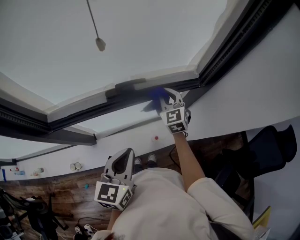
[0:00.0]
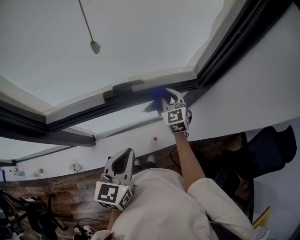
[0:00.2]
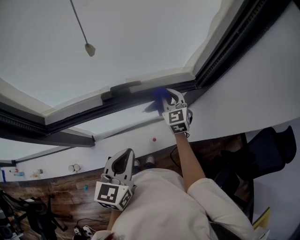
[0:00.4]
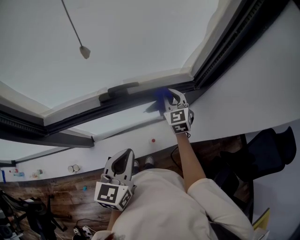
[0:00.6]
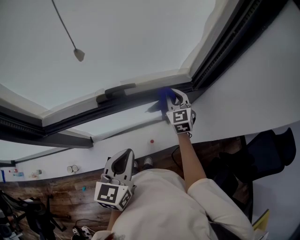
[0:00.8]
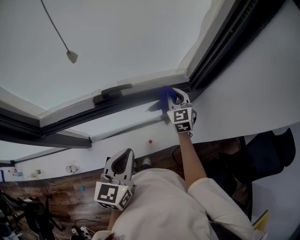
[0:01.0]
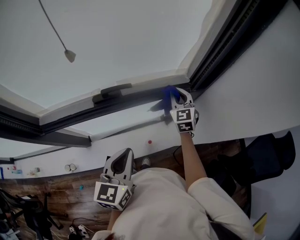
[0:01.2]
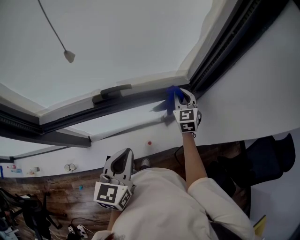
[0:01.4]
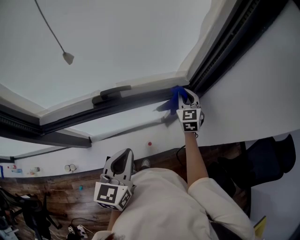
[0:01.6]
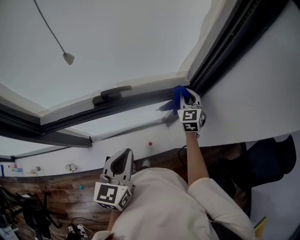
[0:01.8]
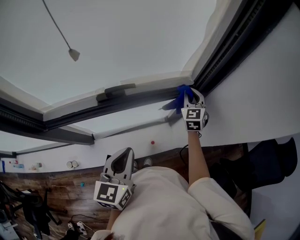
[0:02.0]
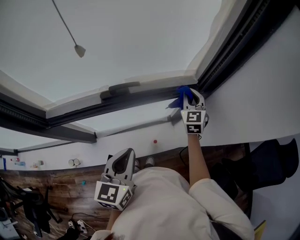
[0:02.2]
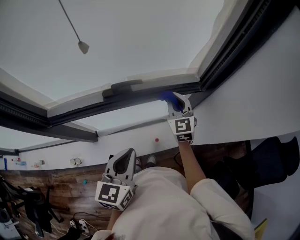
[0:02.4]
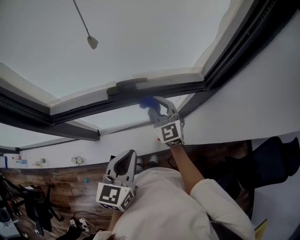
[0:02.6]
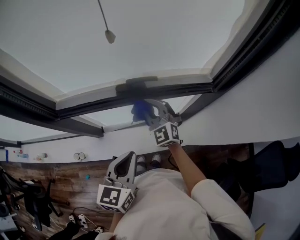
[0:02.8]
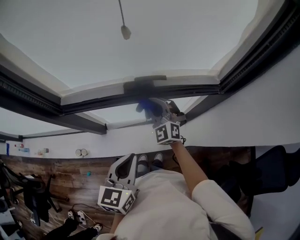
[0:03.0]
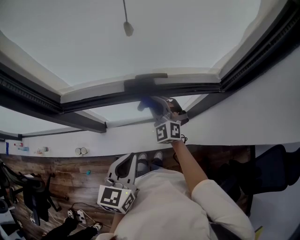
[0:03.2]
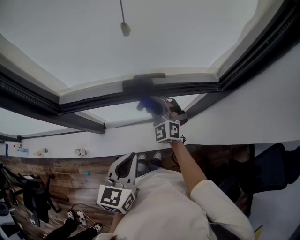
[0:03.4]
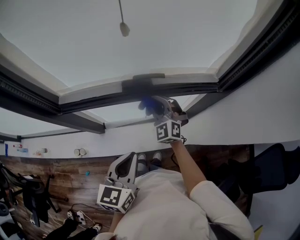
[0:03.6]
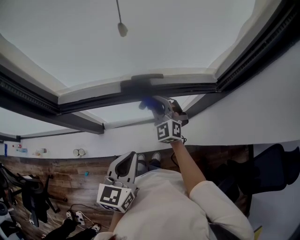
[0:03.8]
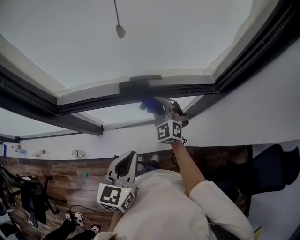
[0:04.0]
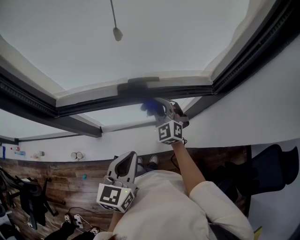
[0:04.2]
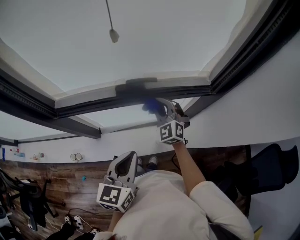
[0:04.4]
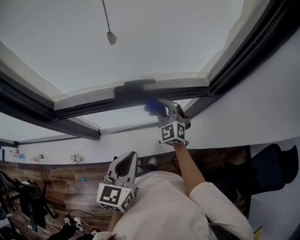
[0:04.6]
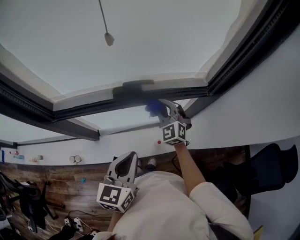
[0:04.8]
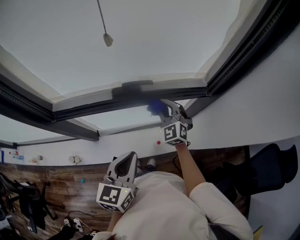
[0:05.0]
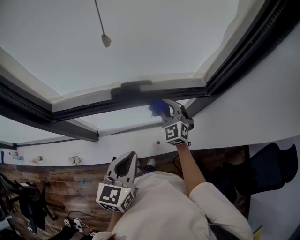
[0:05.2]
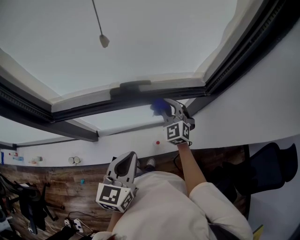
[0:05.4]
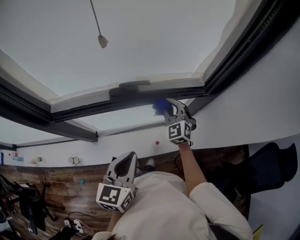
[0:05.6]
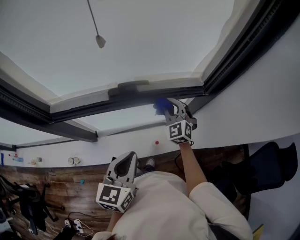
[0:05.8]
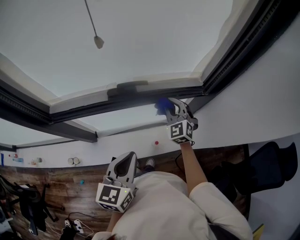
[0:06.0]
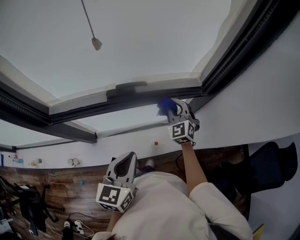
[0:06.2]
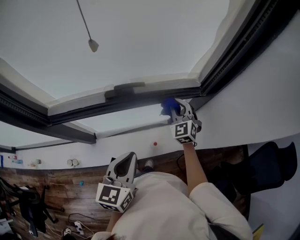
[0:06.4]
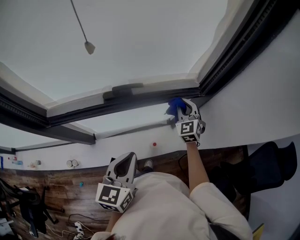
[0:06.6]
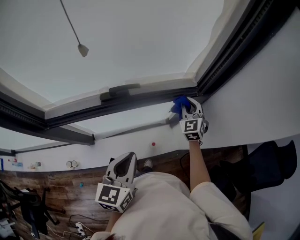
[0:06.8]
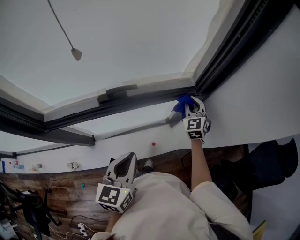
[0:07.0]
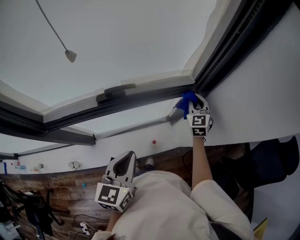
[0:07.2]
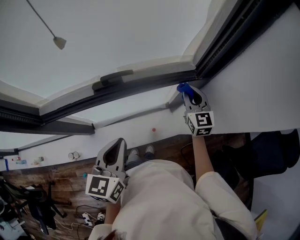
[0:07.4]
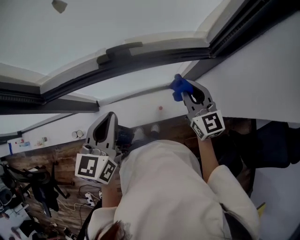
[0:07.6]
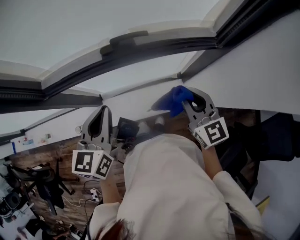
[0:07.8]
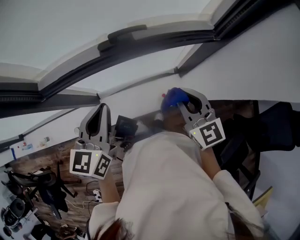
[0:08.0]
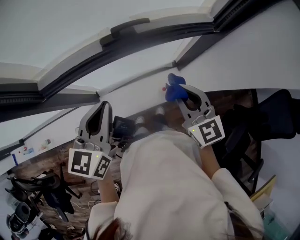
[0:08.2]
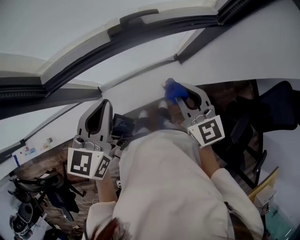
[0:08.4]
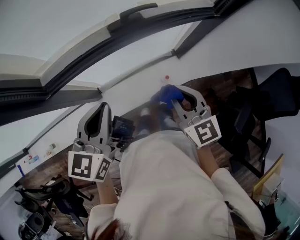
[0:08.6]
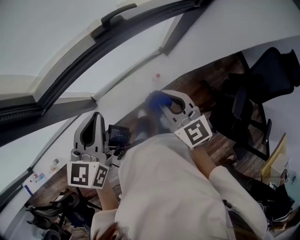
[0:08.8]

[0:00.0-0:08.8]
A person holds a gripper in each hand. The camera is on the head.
0:00.0 to 0:01.4: The left gripper moves to the right, about 5 cm, while the right gripper heads to the right, covering about 15 cm.
0:01.4 to 0:03.0: The right gripper is displaced to the left and backward by approximately 30 cm, and swivels about 40 degrees, while the left gripper shifts approximately 10 cm to the left and backward.
0:03.0 to 0:04.4: The right gripper heads to the right, covering approximately 5 cm.
0:04.4 to 0:05.8: The right gripper moves to the right, approximately 10 cm.
0:05.8 to 0:07.4: The right gripper shifts roughly 15 cm to the right, and turns by roughly 30 degrees.
0:07.4 to 0:08.8: The right gripper shifts approximately 35 cm to the left and backward. Meanwhile the left gripper heads to the left, covering some 20 cm.

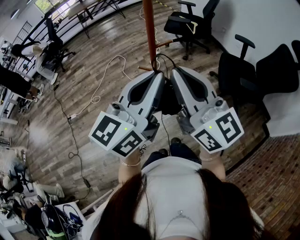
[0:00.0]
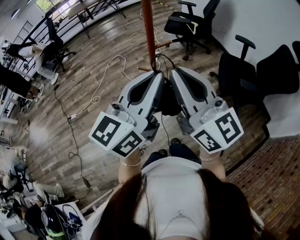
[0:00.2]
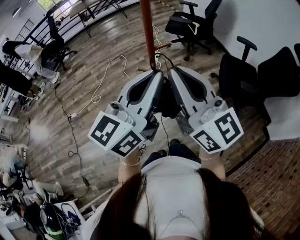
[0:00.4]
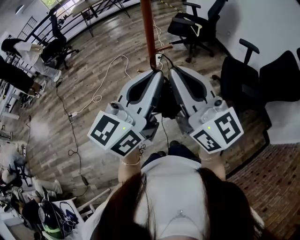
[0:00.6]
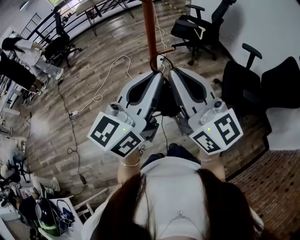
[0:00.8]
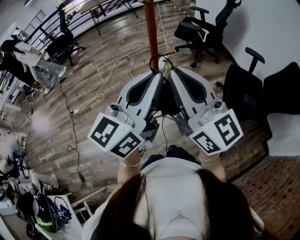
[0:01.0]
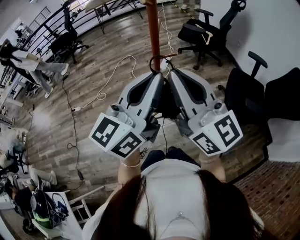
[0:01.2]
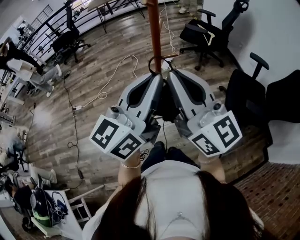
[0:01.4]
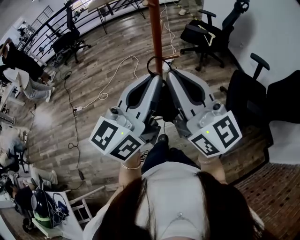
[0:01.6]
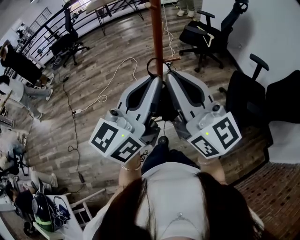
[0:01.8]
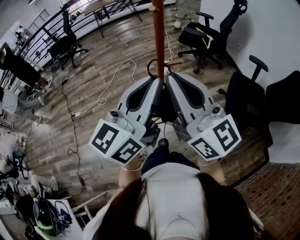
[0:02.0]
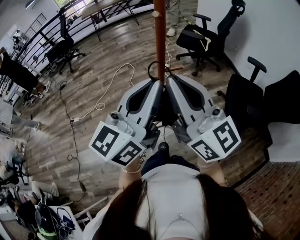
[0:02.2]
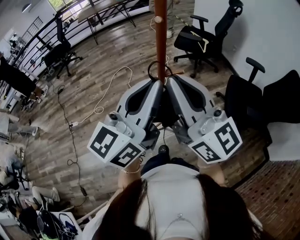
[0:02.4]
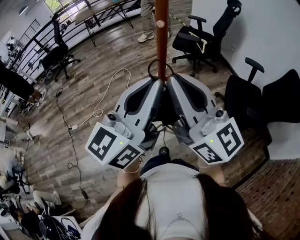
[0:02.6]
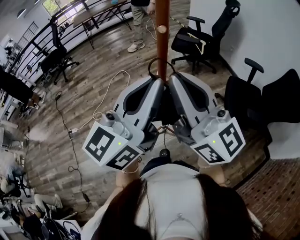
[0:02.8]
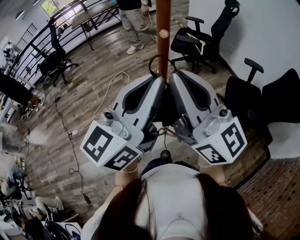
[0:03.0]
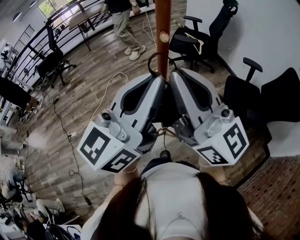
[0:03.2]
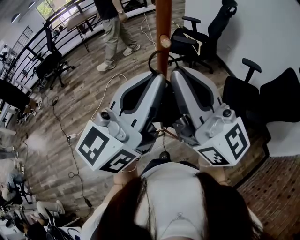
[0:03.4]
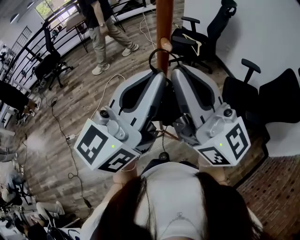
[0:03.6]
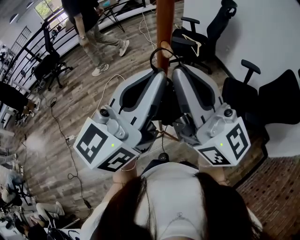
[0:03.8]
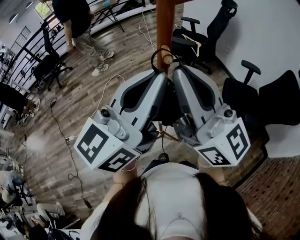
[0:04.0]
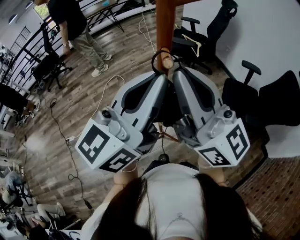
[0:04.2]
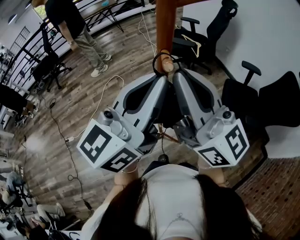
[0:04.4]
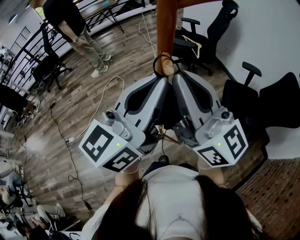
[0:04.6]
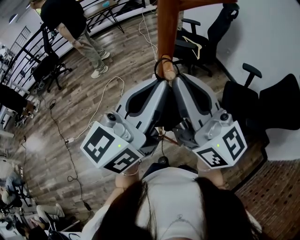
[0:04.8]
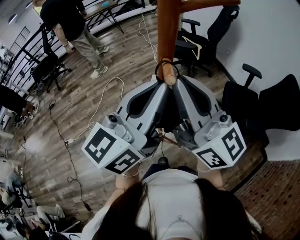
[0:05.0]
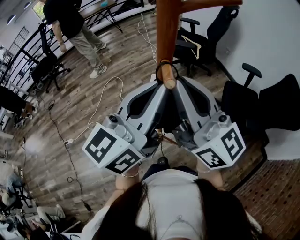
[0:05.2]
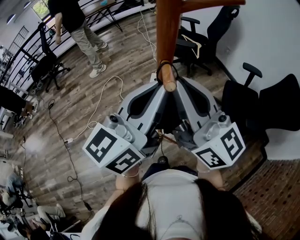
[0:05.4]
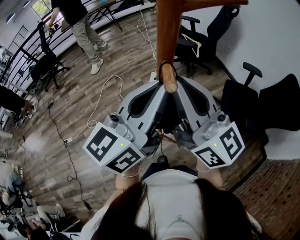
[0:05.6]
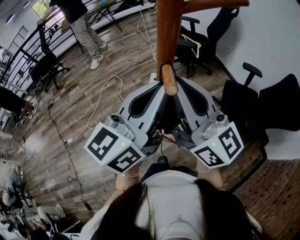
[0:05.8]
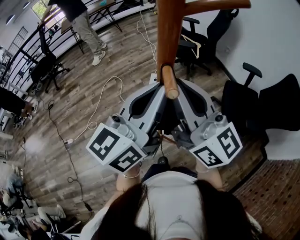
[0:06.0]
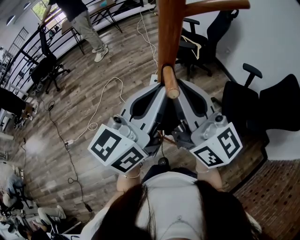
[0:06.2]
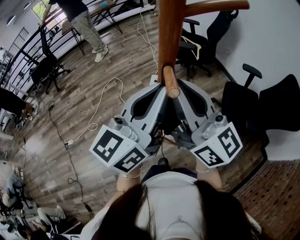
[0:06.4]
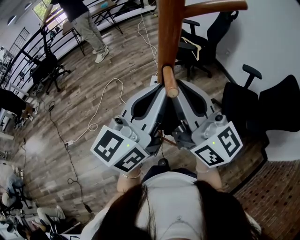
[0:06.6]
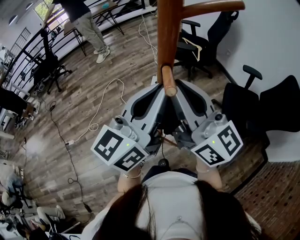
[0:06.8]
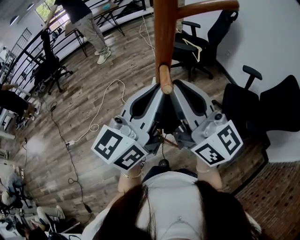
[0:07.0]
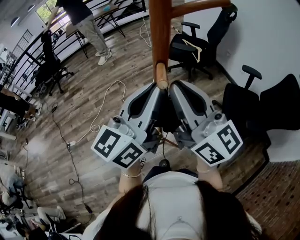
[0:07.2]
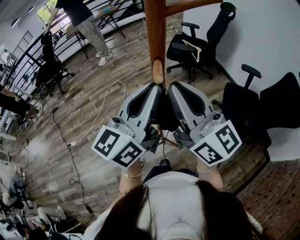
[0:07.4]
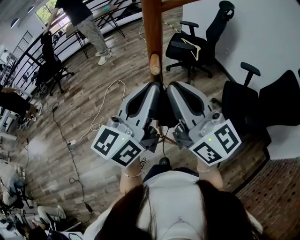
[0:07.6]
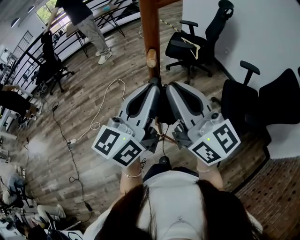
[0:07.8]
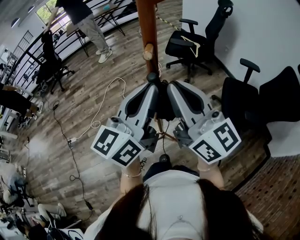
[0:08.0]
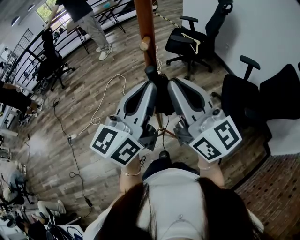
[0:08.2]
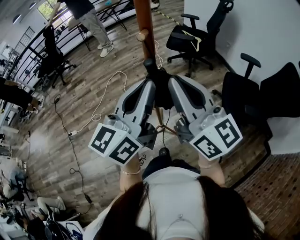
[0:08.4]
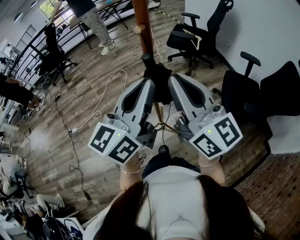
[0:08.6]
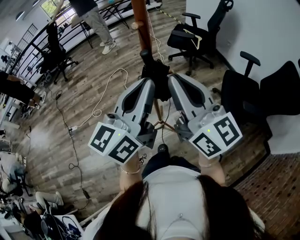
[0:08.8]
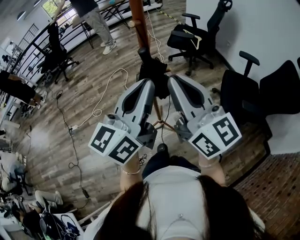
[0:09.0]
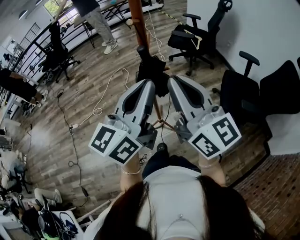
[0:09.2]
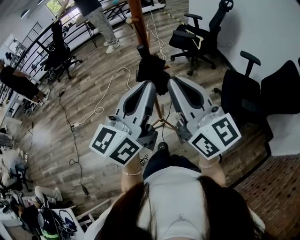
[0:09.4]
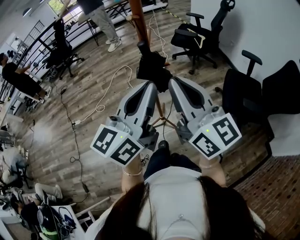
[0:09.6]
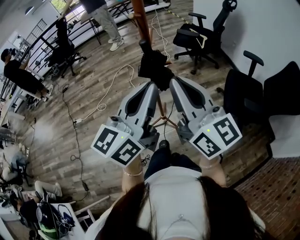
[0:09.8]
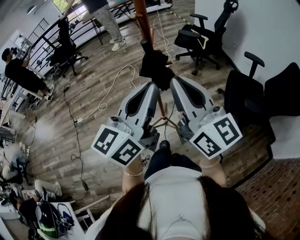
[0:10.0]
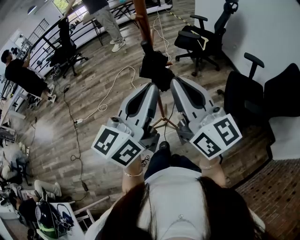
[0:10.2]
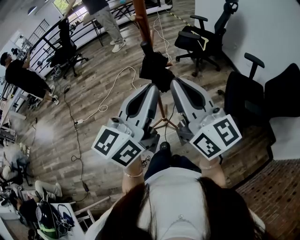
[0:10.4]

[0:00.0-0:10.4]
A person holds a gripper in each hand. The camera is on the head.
0:00.0 to 0:01.4: The right gripper moves forward, some 5 cm. The left gripper shifts by approximately 5 cm.
0:01.4 to 0:03.0: The two grippers go some 10 cm forward.
0:03.0 to 0:04.4: Both grippers move forward, some 5 cm.
0:04.4 to 0:06.0: Both grippers move forward, about 5 cm.
0:06.0 to 0:07.4: The grippers stay close to where they were, moving slightly.
0:07.4 to 0:09.0: The grippers both shift backward by roughly 15 cm.
0:09.0 to 0:10.4: The left gripper shifts roughly 5 cm backward.

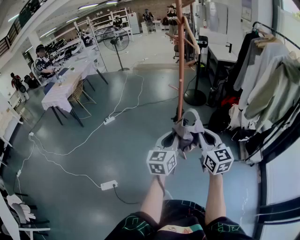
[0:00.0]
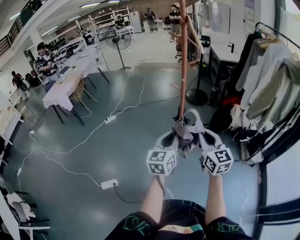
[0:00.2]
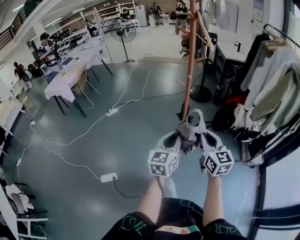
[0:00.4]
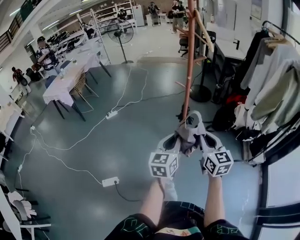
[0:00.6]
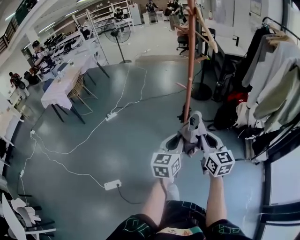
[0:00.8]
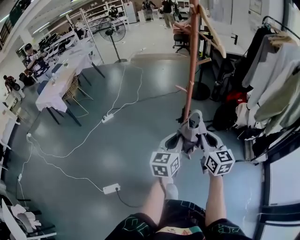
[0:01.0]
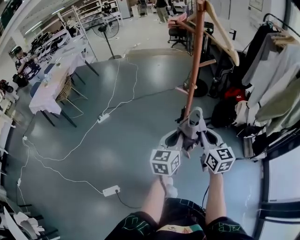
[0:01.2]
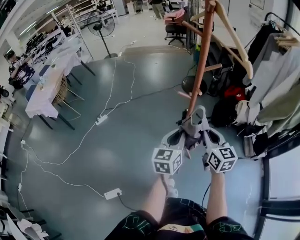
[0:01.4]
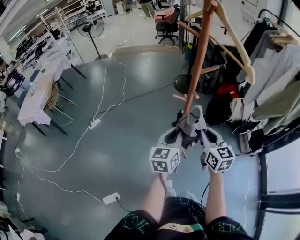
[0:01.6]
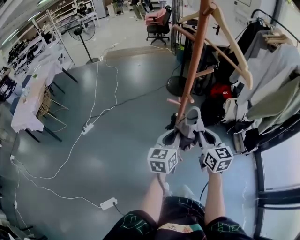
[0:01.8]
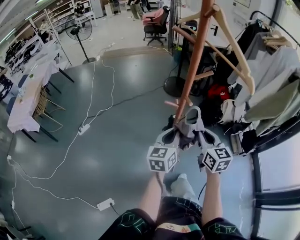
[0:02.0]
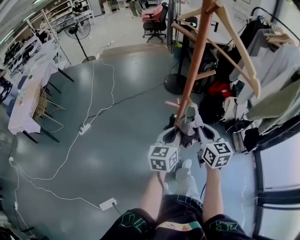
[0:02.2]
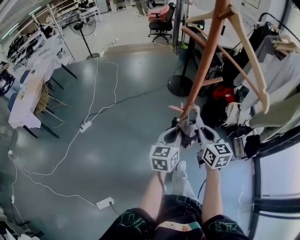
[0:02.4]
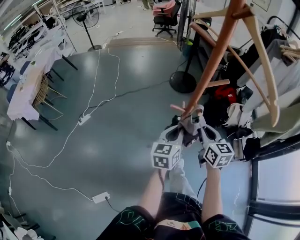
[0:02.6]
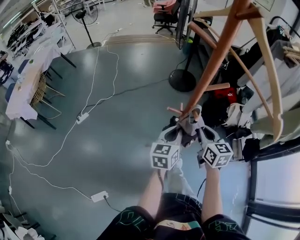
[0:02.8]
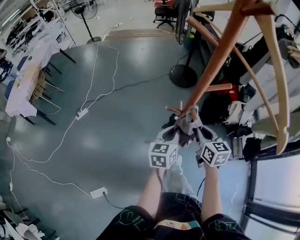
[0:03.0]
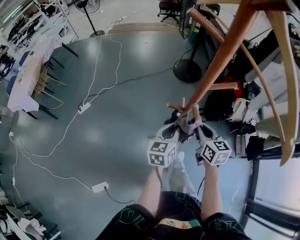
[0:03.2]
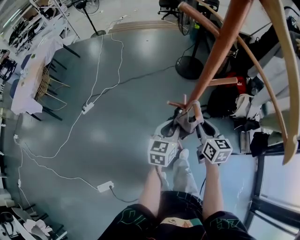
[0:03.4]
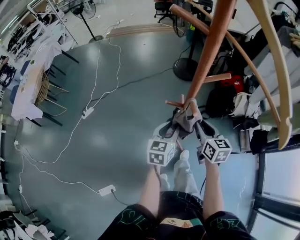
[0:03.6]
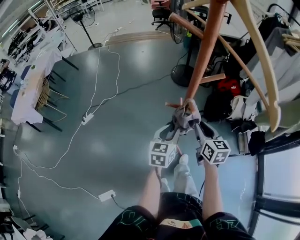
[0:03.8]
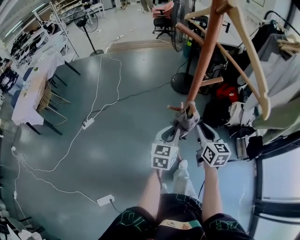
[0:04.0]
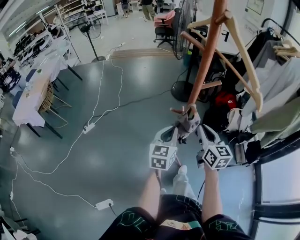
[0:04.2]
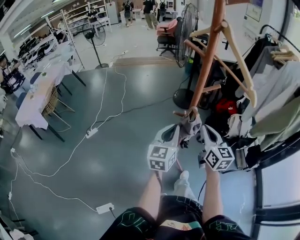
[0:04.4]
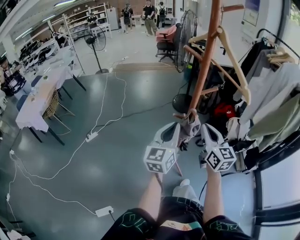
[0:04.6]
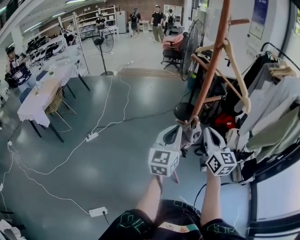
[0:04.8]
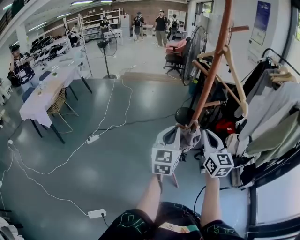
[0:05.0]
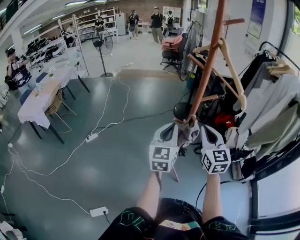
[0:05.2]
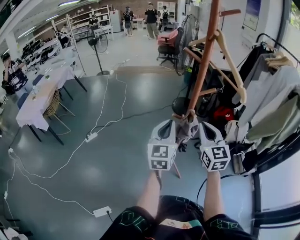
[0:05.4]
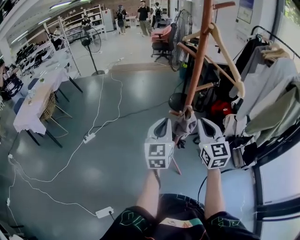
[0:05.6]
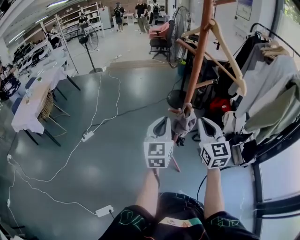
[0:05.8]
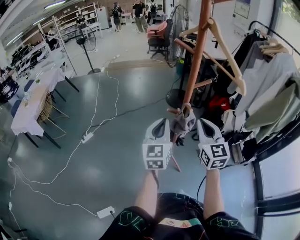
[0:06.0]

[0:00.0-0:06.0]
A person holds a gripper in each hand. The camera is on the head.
0:00.0 to 0:01.6: The two grippers go approximately 20 cm forward.
0:01.6 to 0:03.0: The grippers both shift forward and downward by roughly 15 cm.
0:03.0 to 0:04.4: Both grippers travel together upward, some 10 cm. The right gripper changes its angle by about 20 degrees, and opens, then closes once more, while the left gripper swivels about 20 degrees, and opens, then closes once more.
0:04.4 to 0:06.0: The right gripper changes place by roughly 5 cm.
